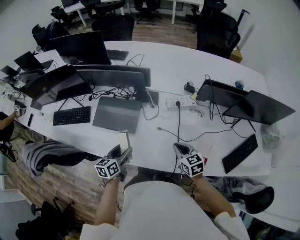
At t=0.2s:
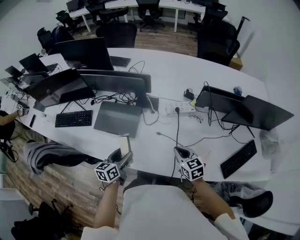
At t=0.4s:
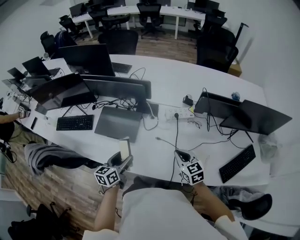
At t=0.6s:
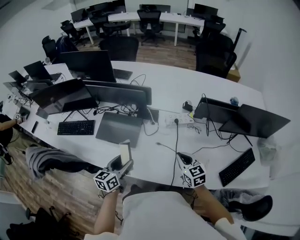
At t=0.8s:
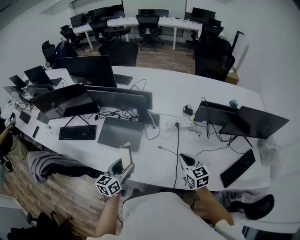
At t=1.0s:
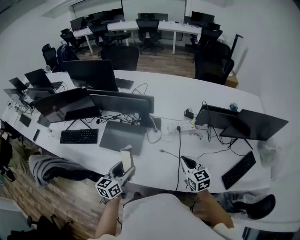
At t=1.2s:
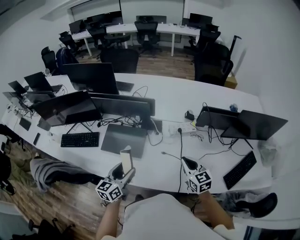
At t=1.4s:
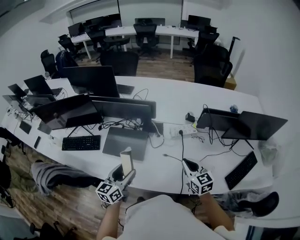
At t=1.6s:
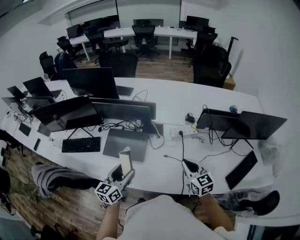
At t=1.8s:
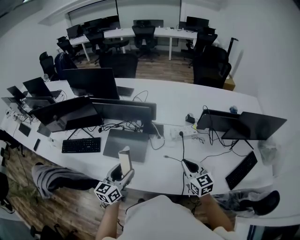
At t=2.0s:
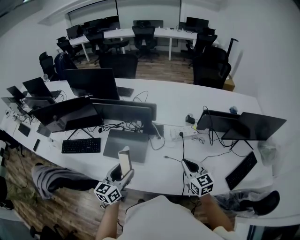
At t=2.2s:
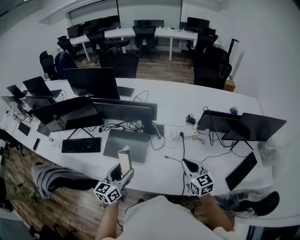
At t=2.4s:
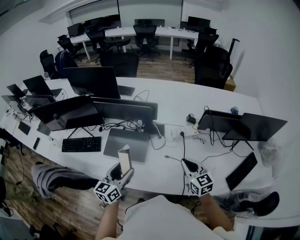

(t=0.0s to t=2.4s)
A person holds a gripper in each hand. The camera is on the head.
t=0.0s - t=1.2s: Both grippers travel together upward, about 10 cm.
t=1.2s - t=2.4s: The left gripper moves approximately 5 cm.

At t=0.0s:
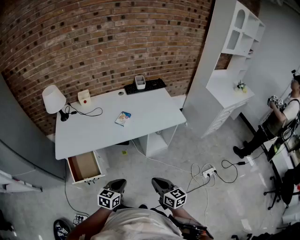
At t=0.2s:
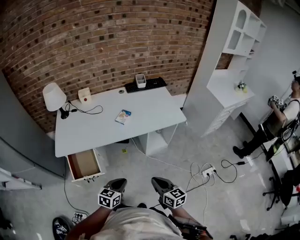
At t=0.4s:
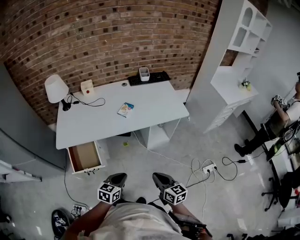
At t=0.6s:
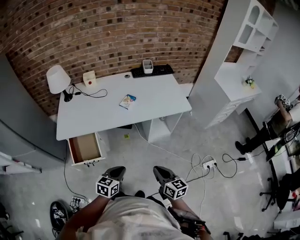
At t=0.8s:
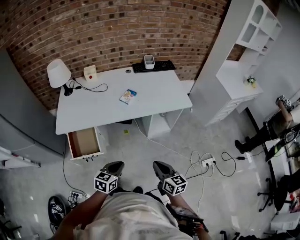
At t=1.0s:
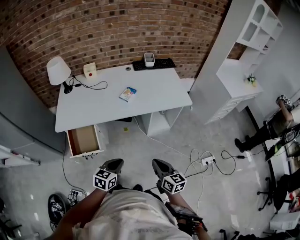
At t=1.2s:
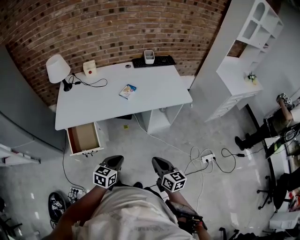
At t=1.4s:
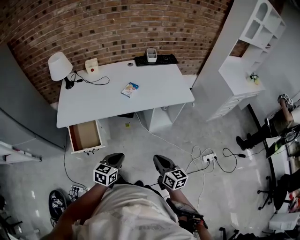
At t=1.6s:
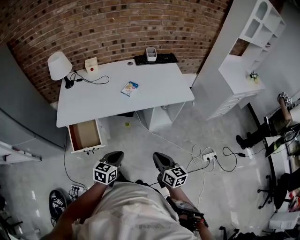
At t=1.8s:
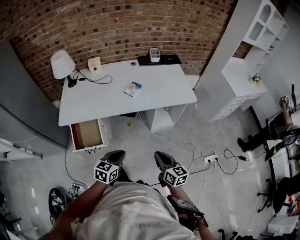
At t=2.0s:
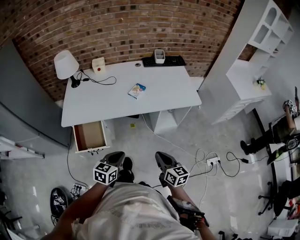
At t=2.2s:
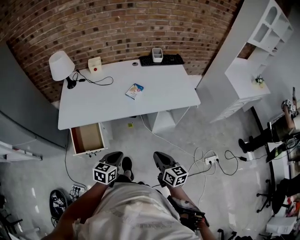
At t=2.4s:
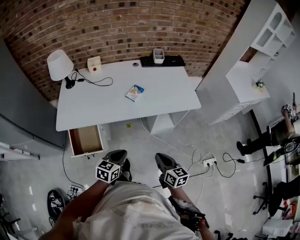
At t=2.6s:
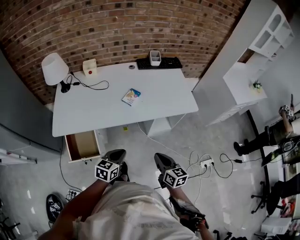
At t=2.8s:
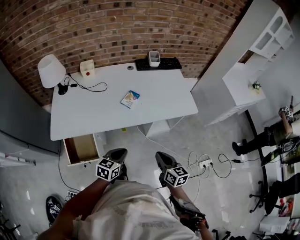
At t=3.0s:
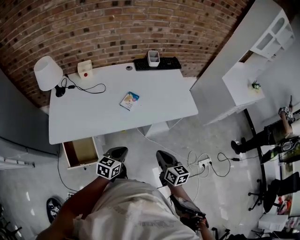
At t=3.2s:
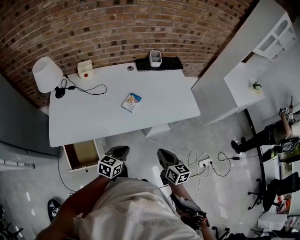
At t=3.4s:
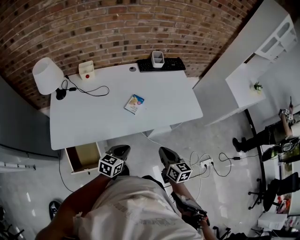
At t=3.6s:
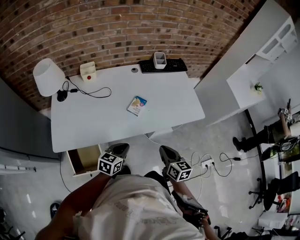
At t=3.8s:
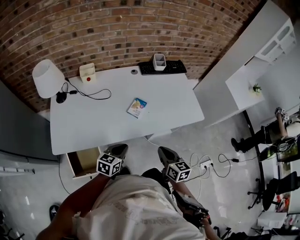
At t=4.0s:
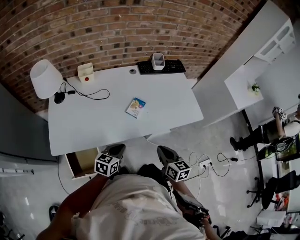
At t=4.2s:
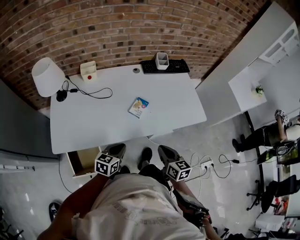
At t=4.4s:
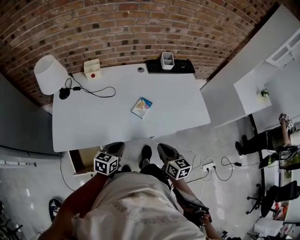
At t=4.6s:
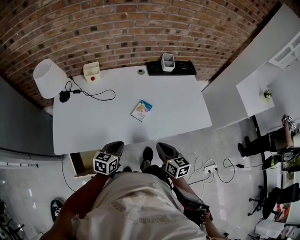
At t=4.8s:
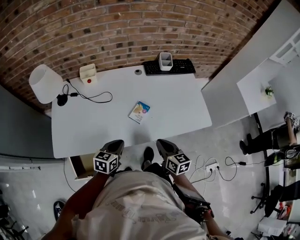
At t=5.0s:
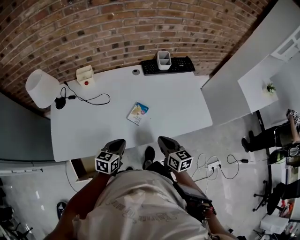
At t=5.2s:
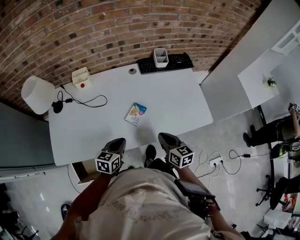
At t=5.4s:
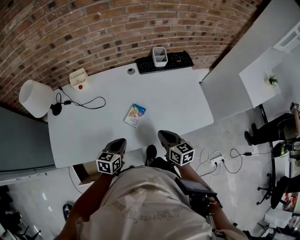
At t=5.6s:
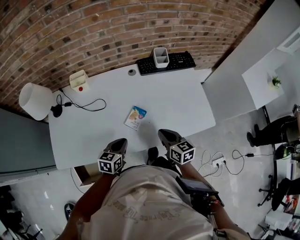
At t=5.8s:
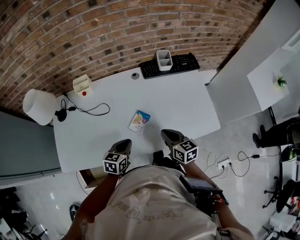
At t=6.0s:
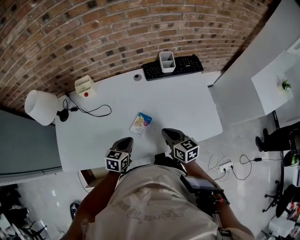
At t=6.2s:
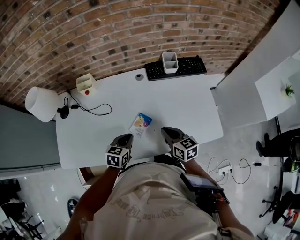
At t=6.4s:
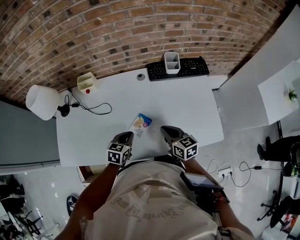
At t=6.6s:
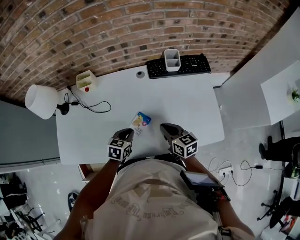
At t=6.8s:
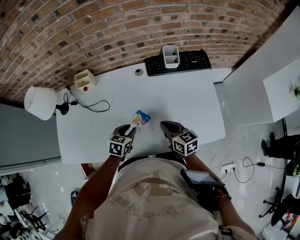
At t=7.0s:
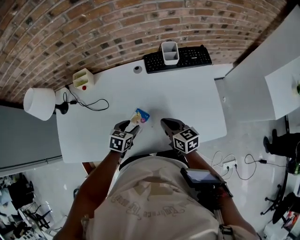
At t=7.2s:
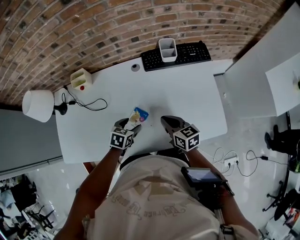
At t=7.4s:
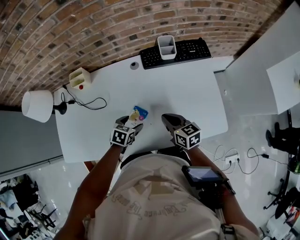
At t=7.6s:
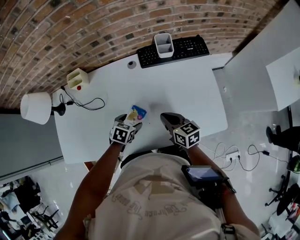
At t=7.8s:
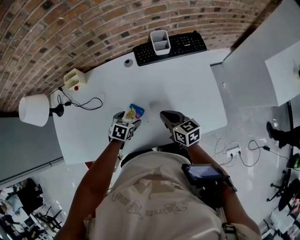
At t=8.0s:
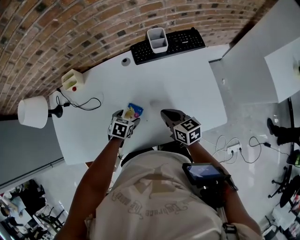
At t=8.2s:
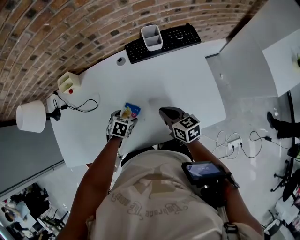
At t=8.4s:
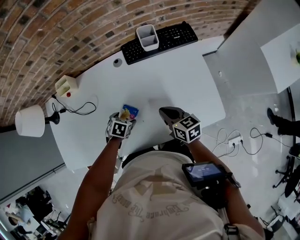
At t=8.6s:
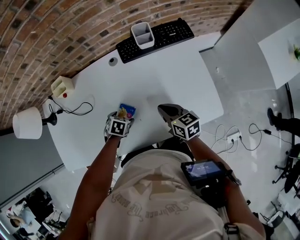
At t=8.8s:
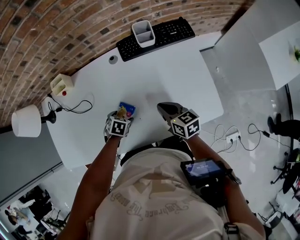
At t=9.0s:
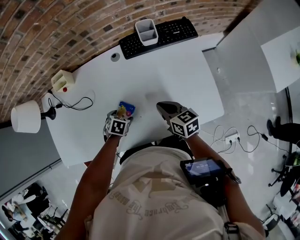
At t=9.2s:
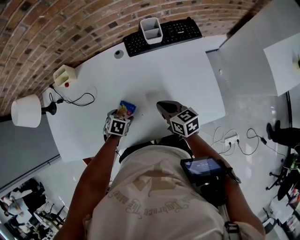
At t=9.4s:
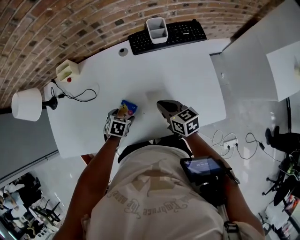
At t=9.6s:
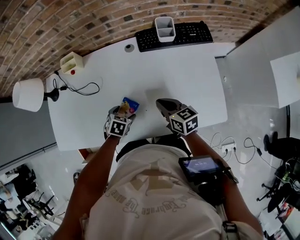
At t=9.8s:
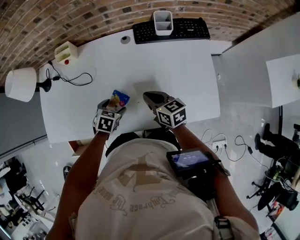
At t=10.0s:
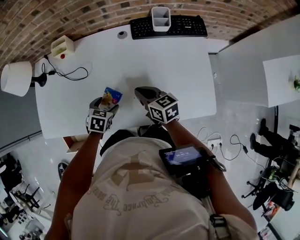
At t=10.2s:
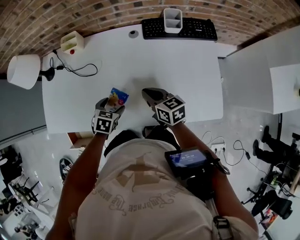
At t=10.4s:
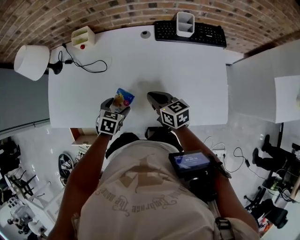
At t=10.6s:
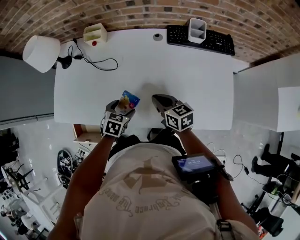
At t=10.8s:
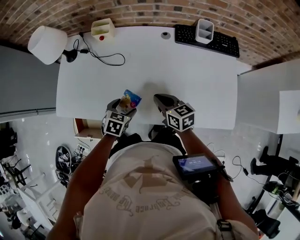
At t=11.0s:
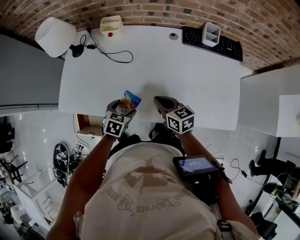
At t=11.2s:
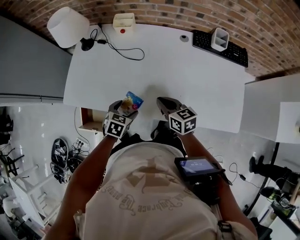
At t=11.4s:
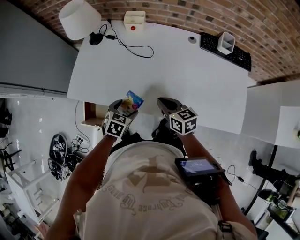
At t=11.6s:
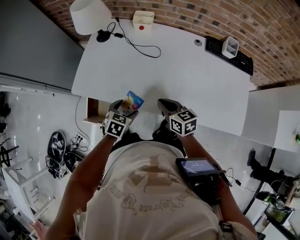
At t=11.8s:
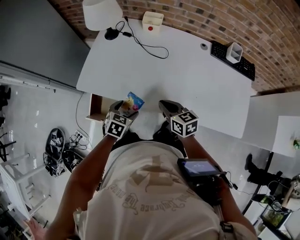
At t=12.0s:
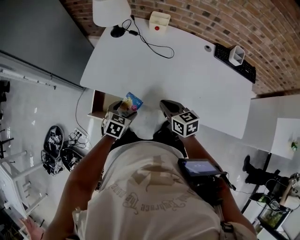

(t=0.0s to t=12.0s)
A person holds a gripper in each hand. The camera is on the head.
t=0.0s - t=1.6s: There are only small adjustments of the grippers.
t=1.6s - t=3.0s: The grippers both shift forward by roughly 20 cm.
t=3.0s - t=4.4s: The right gripper heads forward and to the left, covering some 15 cm, while the left gripper heads to the left and forward, covering some 15 cm.
t=4.4s - t=6.0s: The right gripper moves forward, approximately 20 cm. The left gripper shifts approximately 20 cm forward and to the right.
t=6.0s - t=7.6s: The right gripper shifts roughly 5 cm forward, while the left gripper is displaced downward, forward and to the right by approximately 15 cm, changes its angle by about 30 degrees, and opens up.
t=7.6s - t=9.0s: The left gripper travels downward by some 5 cm.
t=9.0s - t=10.4s: The left gripper changes place by about 10 cm, and rotates approximately 20 degrees. Meanwhile the right gripper shifts by roughly 10 cm.
t=10.4s - t=12.0s: The two grippers go roughly 30 cm to the left.

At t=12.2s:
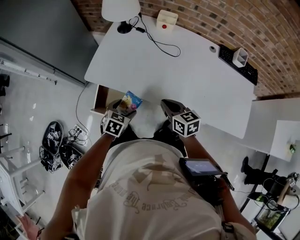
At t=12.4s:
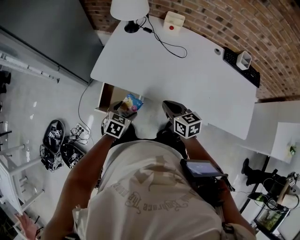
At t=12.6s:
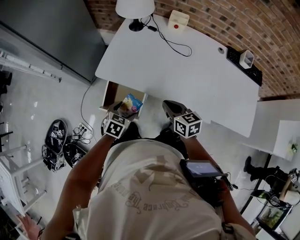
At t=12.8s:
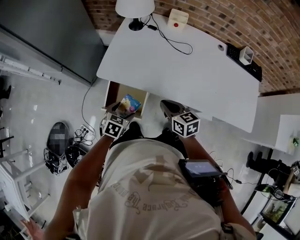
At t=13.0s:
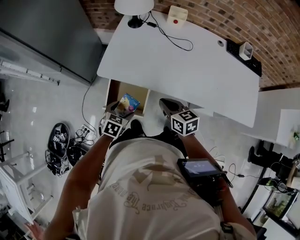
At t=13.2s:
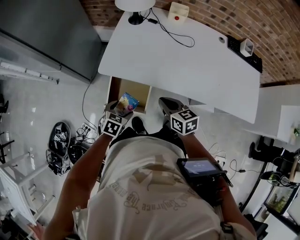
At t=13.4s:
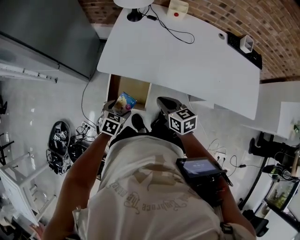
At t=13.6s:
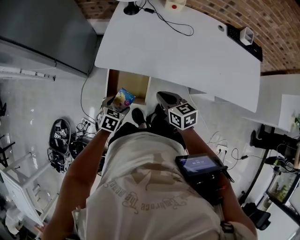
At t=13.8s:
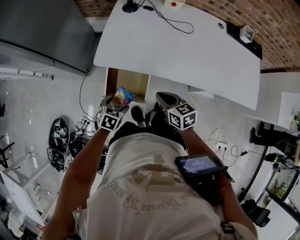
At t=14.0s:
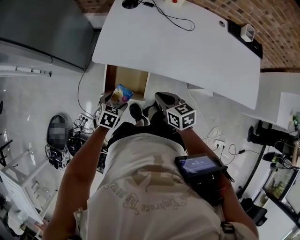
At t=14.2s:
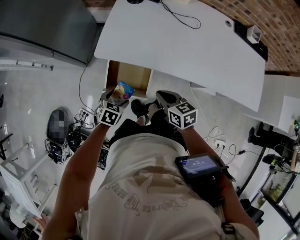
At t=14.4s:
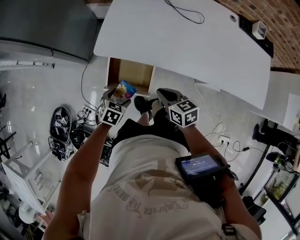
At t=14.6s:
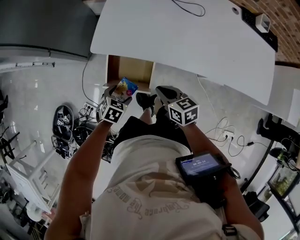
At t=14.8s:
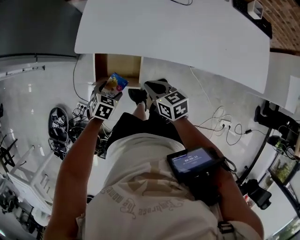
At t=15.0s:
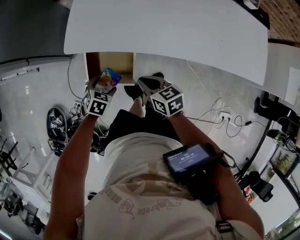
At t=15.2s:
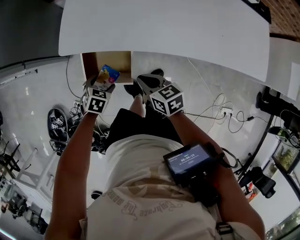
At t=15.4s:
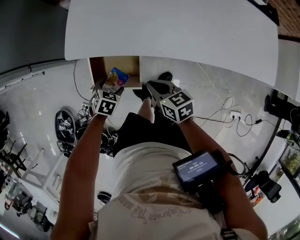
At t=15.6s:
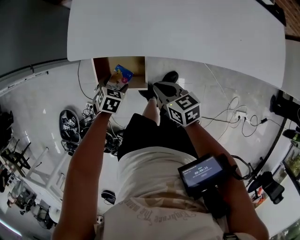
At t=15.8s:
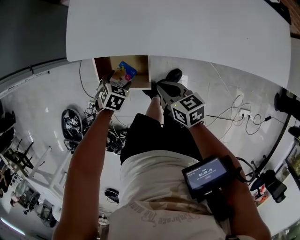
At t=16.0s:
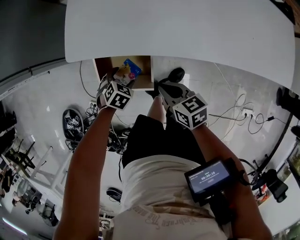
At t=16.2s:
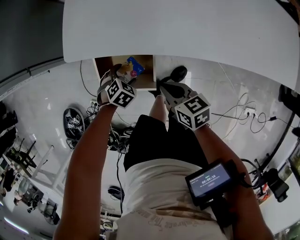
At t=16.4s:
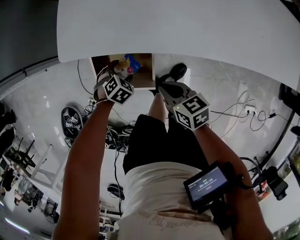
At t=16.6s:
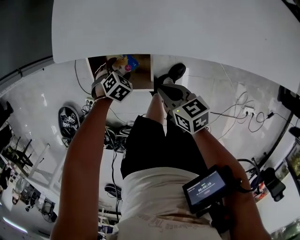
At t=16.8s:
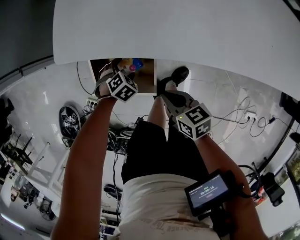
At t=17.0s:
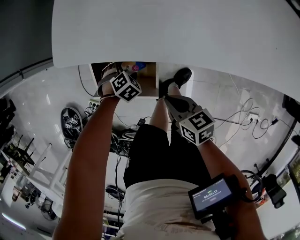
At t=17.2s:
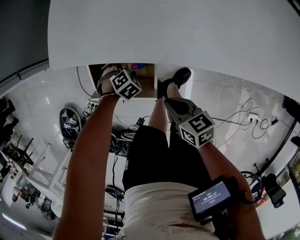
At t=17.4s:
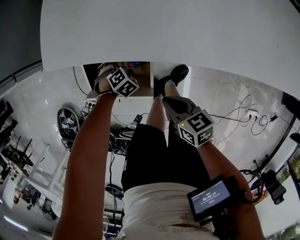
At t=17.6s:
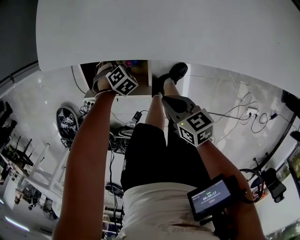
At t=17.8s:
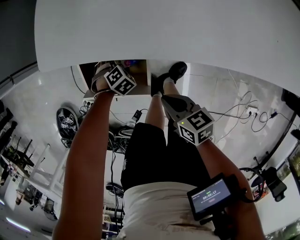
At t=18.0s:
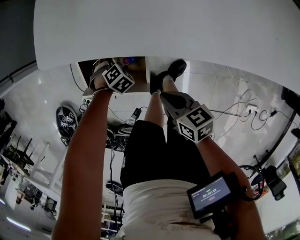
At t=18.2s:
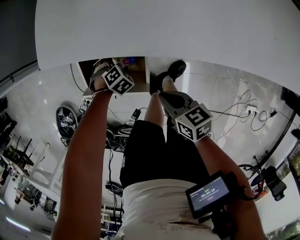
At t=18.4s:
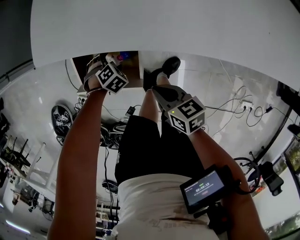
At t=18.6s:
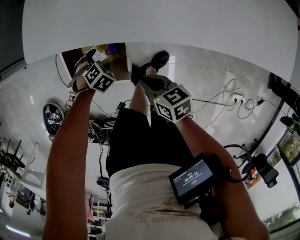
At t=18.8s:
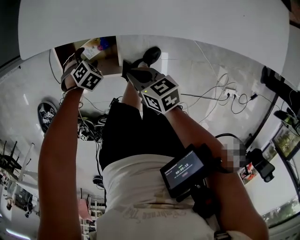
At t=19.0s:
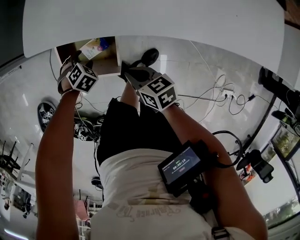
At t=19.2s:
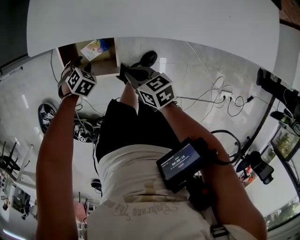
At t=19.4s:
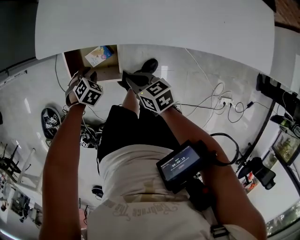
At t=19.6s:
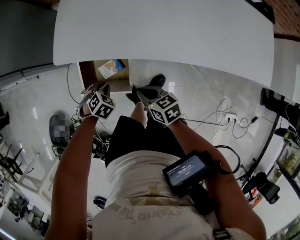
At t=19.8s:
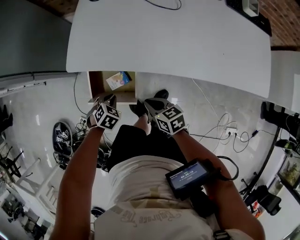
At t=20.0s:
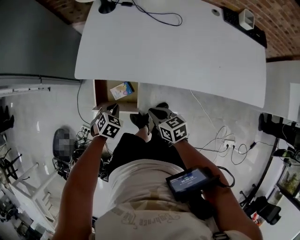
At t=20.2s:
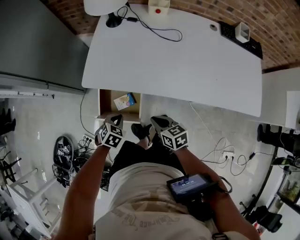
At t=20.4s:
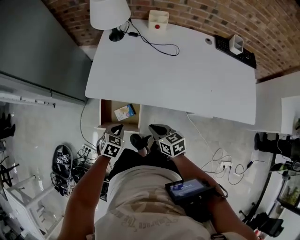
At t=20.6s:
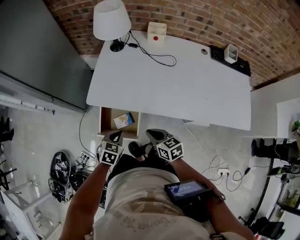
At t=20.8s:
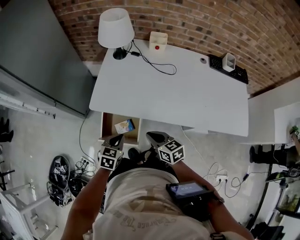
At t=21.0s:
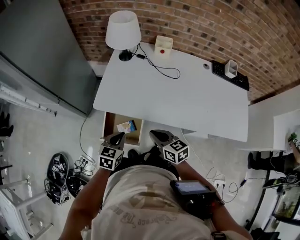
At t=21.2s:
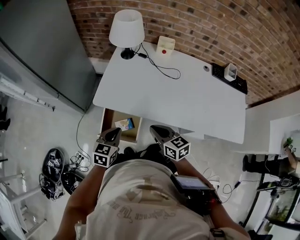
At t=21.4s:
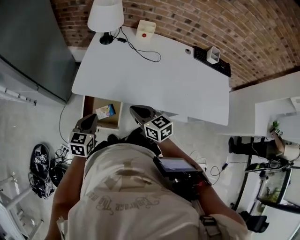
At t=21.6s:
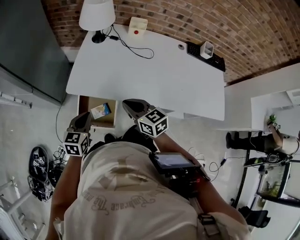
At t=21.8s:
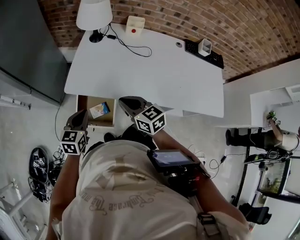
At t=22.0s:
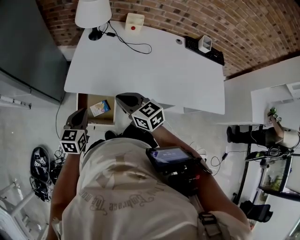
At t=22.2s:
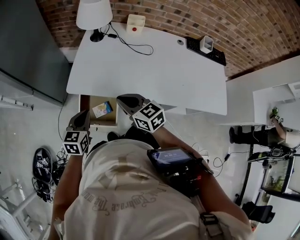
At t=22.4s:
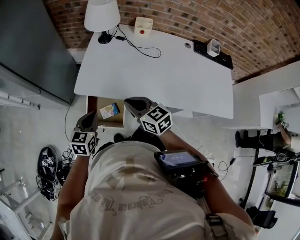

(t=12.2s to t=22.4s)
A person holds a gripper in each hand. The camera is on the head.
t=12.2s - t=13.6s: The grippers both shift to the left by some 15 cm.
t=13.6s - t=15.2s: Both grippers travel together downward, about 10 cm.
t=15.2s - t=16.6s: The grippers both shift downward by approximately 10 cm. The left gripper changes its angle by approximately 20 degrees.
t=16.6s - t=18.0s: The left gripper travels downward by roughly 5 cm.
t=18.0s - t=19.4s: The right gripper is displaced upward by approximately 5 cm, while the left gripper heads upward, covering approximately 15 cm, and closes its fingers.
t=19.4s - t=21.0s: Both grippers travel together upward, some 25 cm. The right gripper swivels approximately 20 degrees. The left gripper tilts its fingers about 40 degrees upward.
t=21.0s - t=22.4s: The right gripper travels upward by roughly 5 cm; the left gripper shifts by approximately 5 cm.
